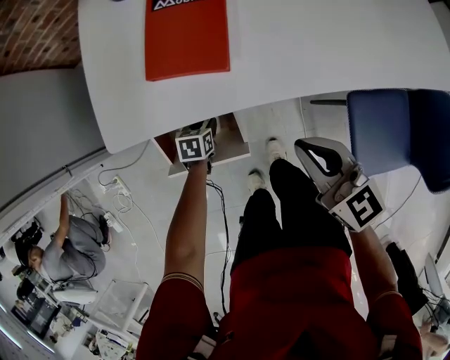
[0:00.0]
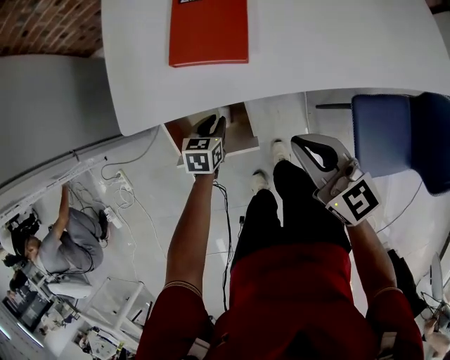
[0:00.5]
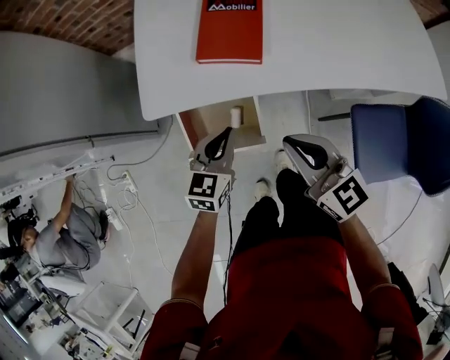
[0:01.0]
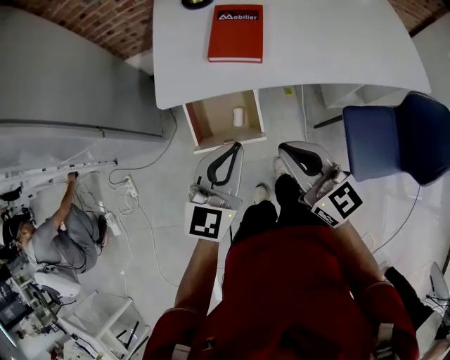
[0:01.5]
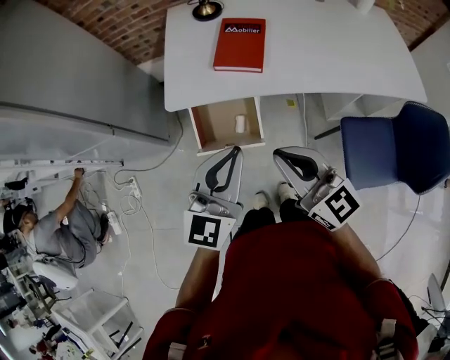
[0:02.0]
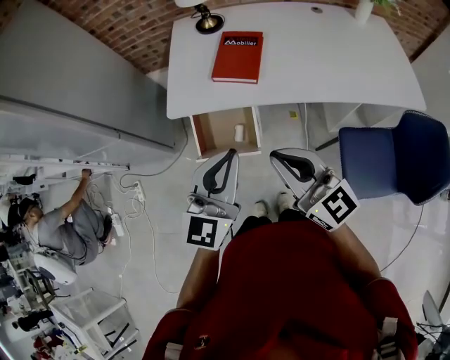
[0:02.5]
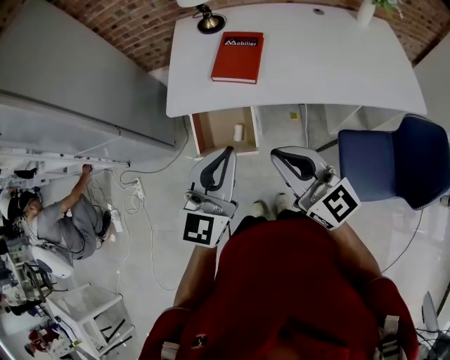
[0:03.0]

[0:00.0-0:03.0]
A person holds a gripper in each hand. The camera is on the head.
0:00.0 to 0:01.5: The right gripper heads upward, backward and to the left, covering some 20 cm, while the left gripper moves upward and backward, some 50 cm, points its fingers approximately 50 degrees further upward, and closes its fingers.
0:01.5 to 0:03.0: Both grippers travel together upward and to the right, roughly 10 cm.

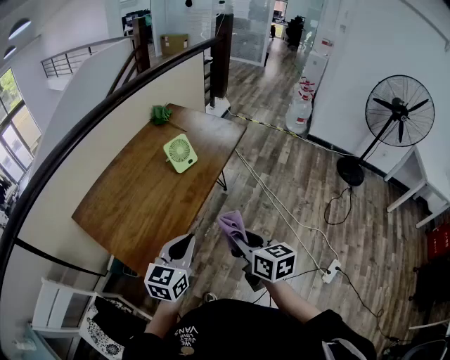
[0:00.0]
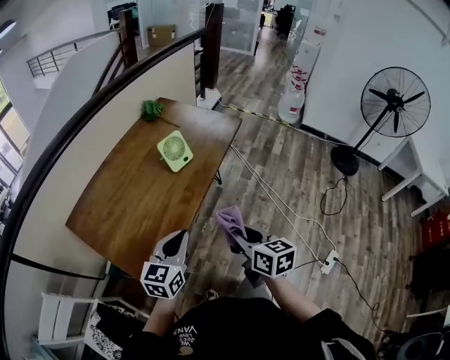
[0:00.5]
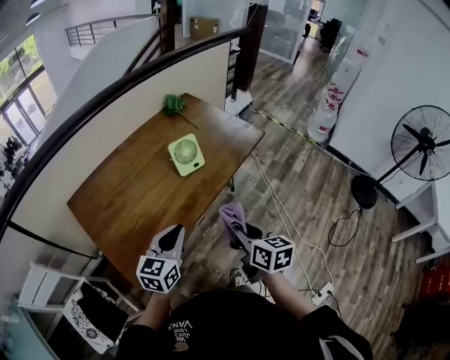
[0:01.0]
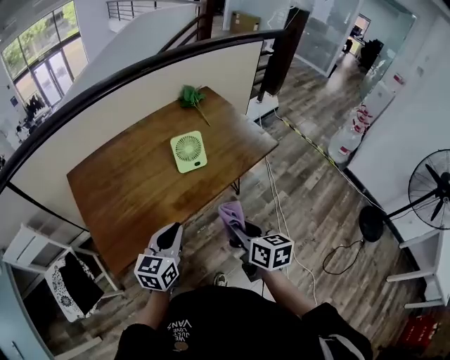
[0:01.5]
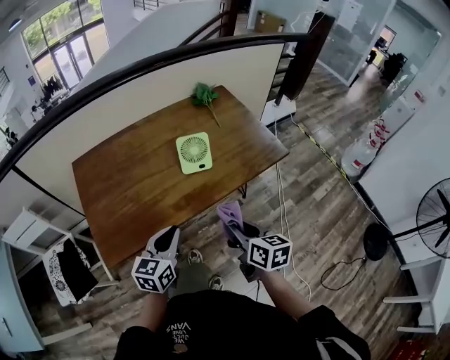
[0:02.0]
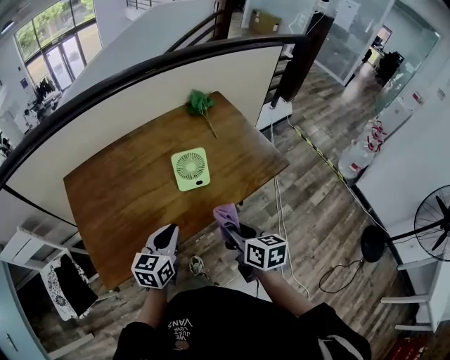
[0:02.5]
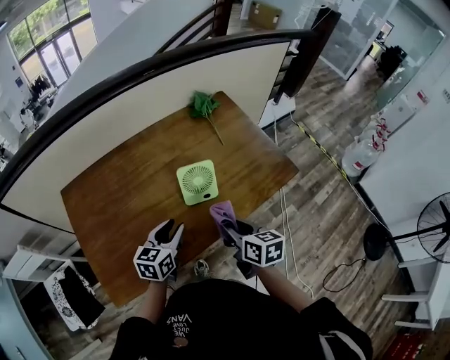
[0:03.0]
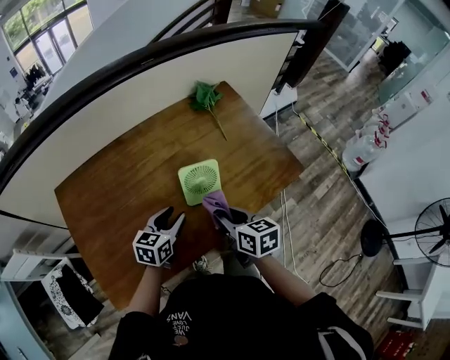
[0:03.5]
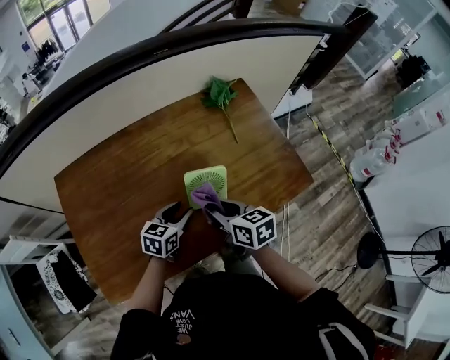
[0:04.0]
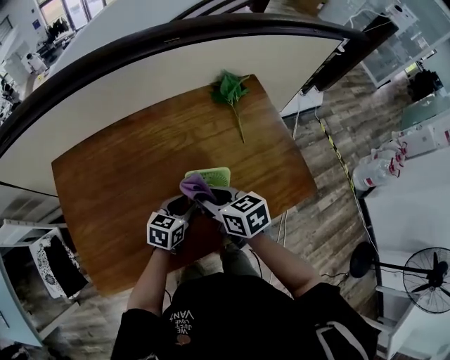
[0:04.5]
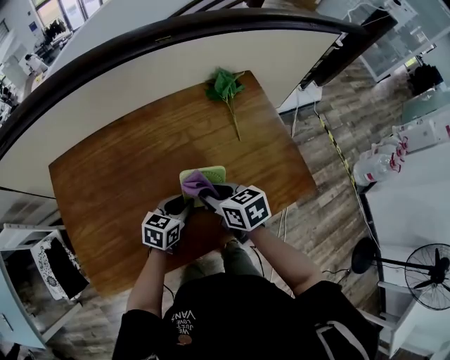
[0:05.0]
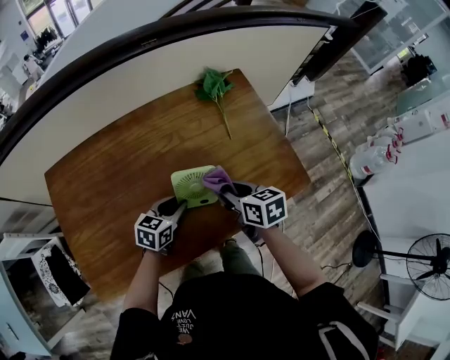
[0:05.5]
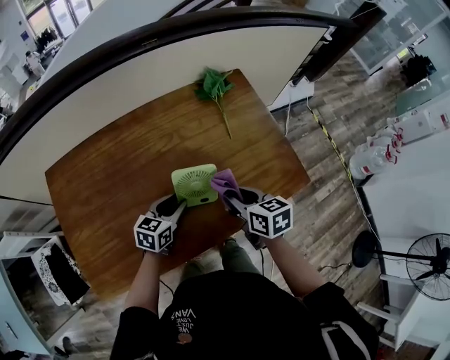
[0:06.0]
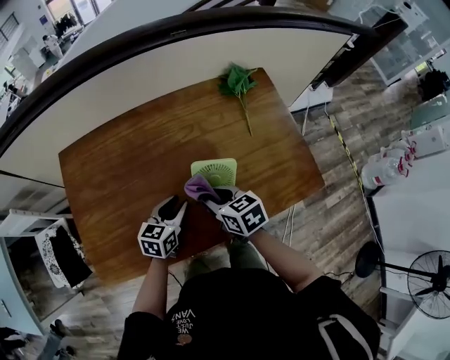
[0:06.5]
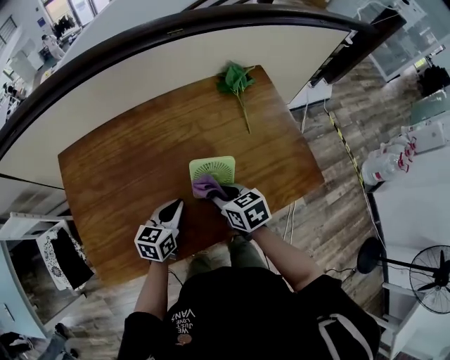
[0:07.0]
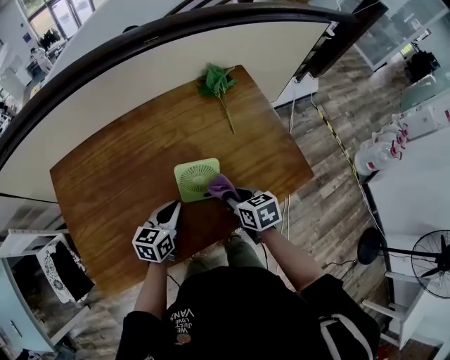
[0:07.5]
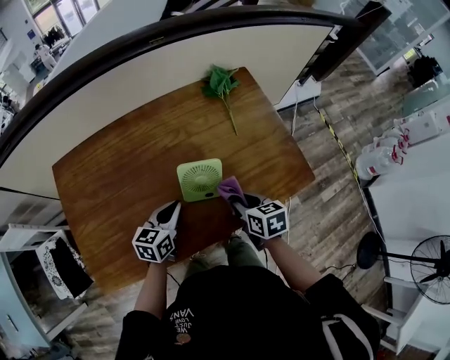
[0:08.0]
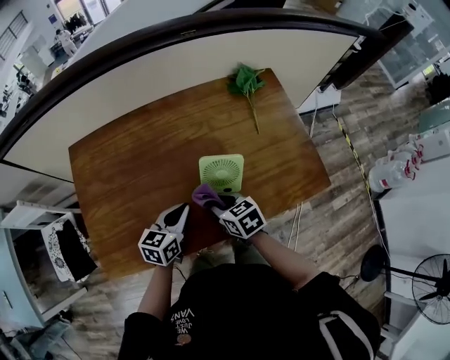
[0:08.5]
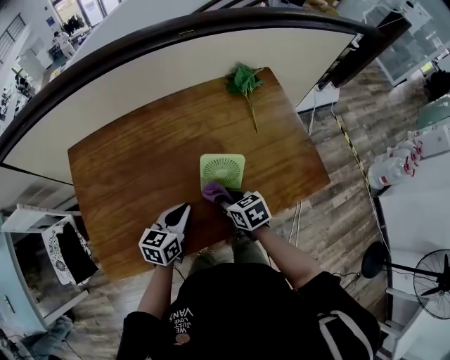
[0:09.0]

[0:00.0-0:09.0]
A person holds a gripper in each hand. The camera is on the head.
0:00.0 to 0:02.0: The right gripper moves roughly 25 cm, and changes its angle by approximately 30 degrees. Meanwhile the left gripper changes place by some 15 cm, and rotates some 40 degrees.
0:02.0 to 0:04.5: The right gripper goes some 30 cm forward, and turns by roughly 30 degrees; the left gripper heads forward and downward, covering some 30 cm, and opens up.
0:04.5 to 0:07.0: The right gripper goes approximately 5 cm downward, and moves some 10 cm to the right and comes back, while the left gripper shifts roughly 5 cm to the left, and closes its fingers.
0:07.0 to 0:09.0: The right gripper reaches some 10 cm to the right, then returns.

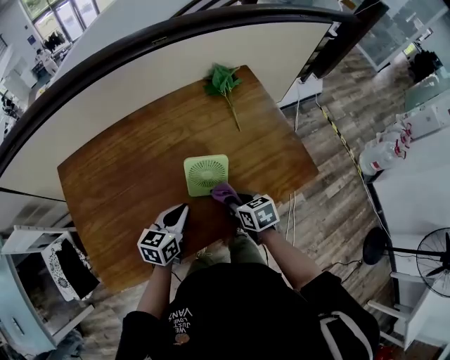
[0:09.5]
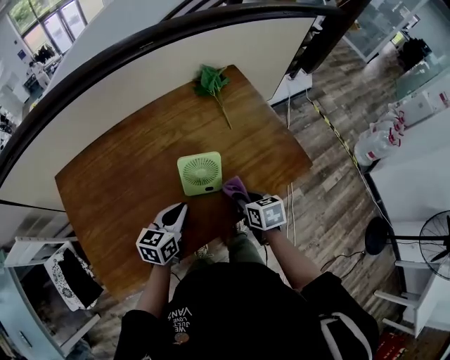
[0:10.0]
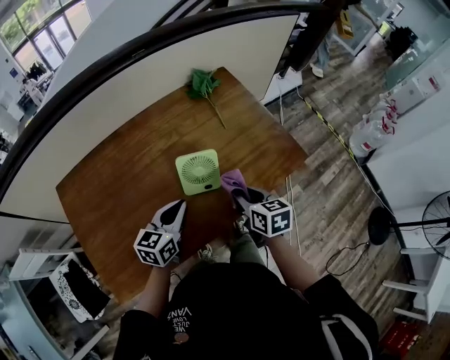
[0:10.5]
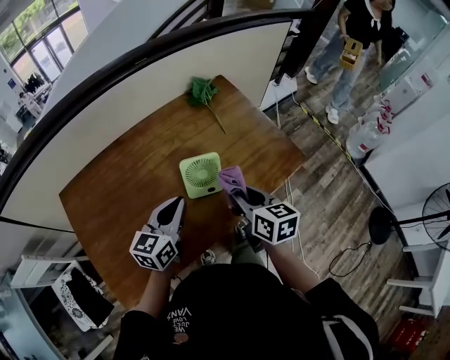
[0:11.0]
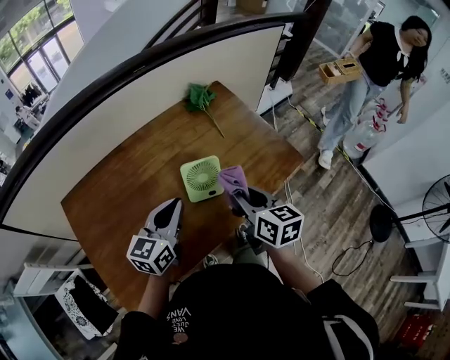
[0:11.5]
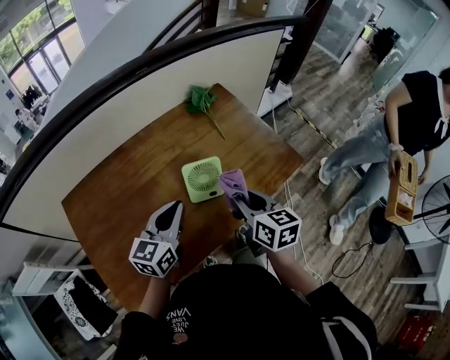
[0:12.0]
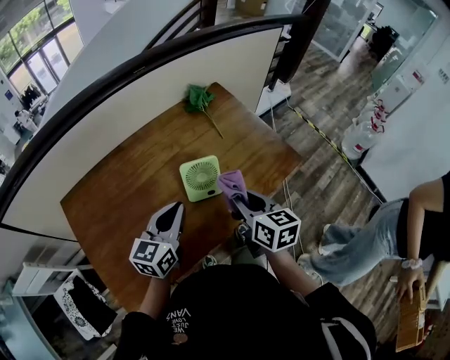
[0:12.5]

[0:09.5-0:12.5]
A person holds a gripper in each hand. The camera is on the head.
0:09.5 to 0:11.0: Both grippers travel together upward, approximately 15 cm. The right gripper turns by some 30 degrees.
0:11.0 to 0:12.5: There are only small adjustments of the grippers.

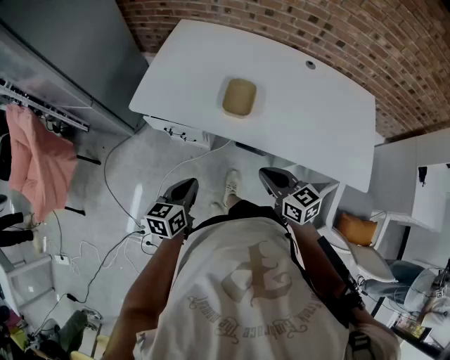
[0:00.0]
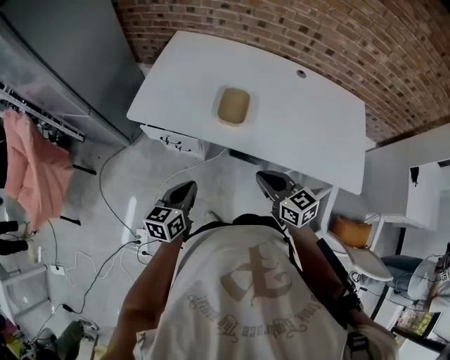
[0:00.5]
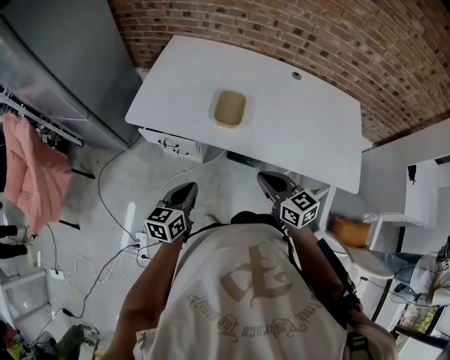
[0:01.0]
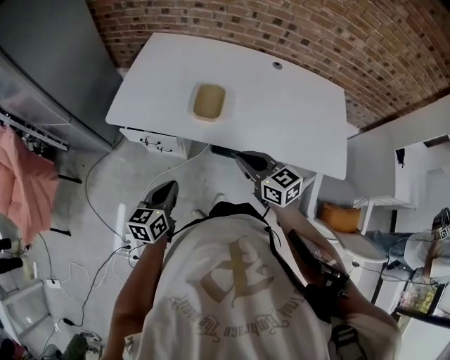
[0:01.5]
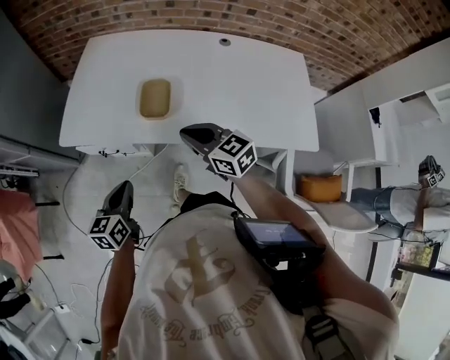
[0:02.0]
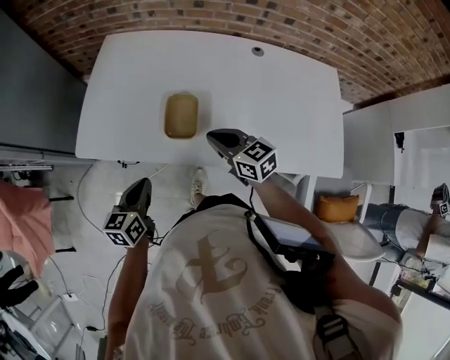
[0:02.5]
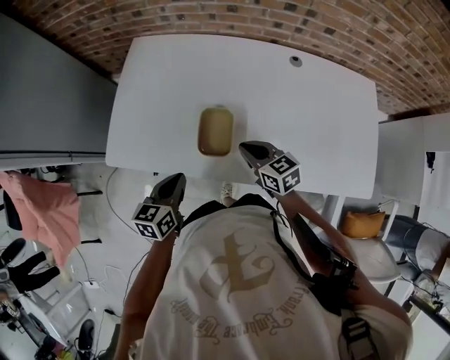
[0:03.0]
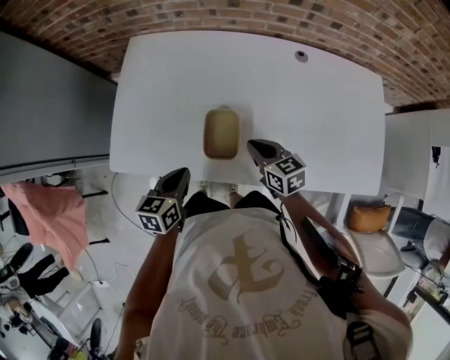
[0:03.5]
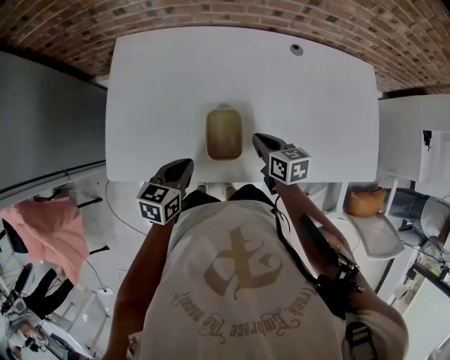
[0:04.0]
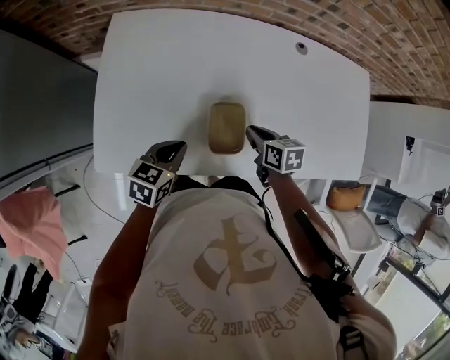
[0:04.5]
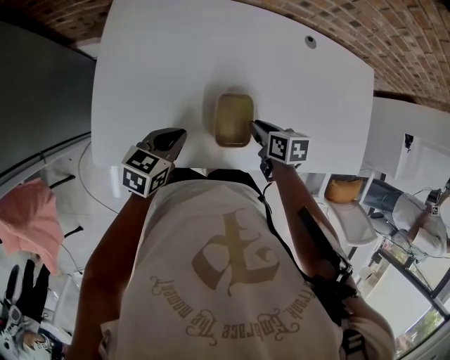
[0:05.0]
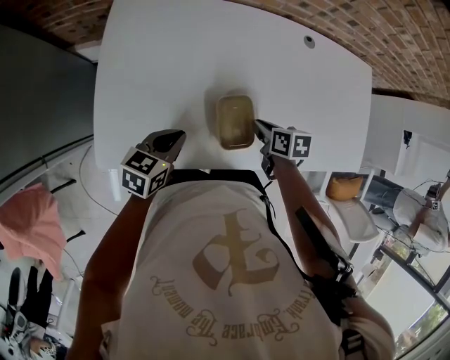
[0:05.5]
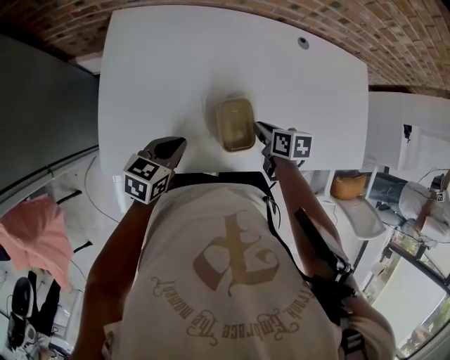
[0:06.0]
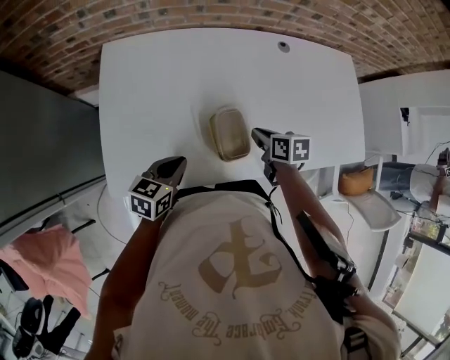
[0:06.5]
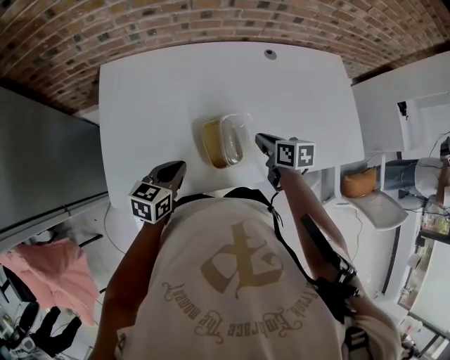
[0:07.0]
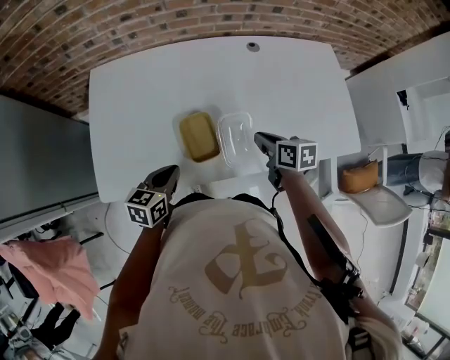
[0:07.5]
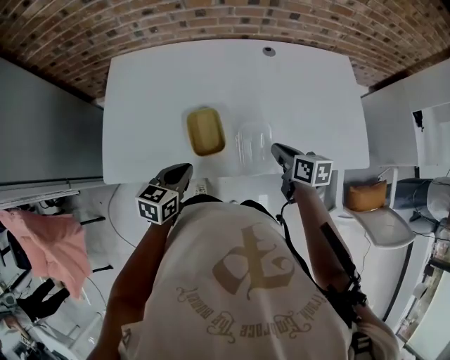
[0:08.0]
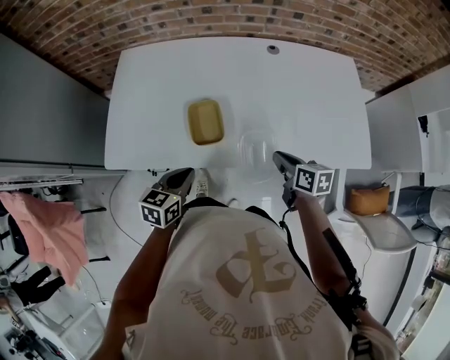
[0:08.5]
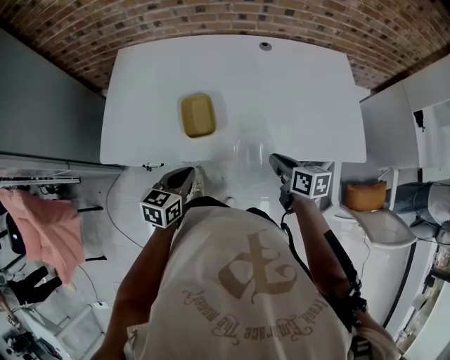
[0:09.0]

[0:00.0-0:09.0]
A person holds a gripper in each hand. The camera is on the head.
0:00.0 to 0:02.0: The right gripper moves forward, about 10 cm.
0:02.0 to 0:04.5: The left gripper is displaced forward by roughly 30 cm, and rotates approximately 30 degrees, while the right gripper moves forward and downward, about 25 cm, and changes its angle by roughly 50 degrees.
0:04.5 to 0:07.0: The right gripper moves about 5 cm.
0:07.0 to 0:09.0: Both grippers travel together backward and to the right, approximately 20 cm.

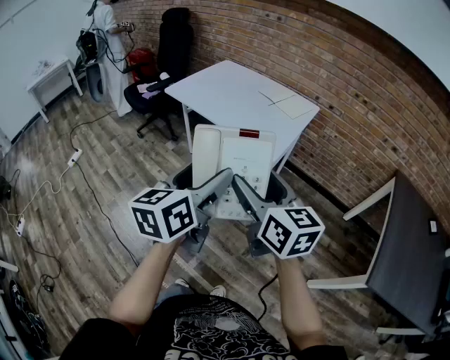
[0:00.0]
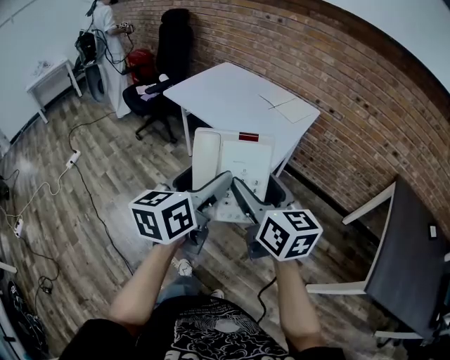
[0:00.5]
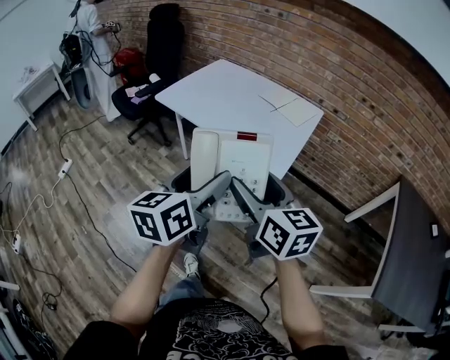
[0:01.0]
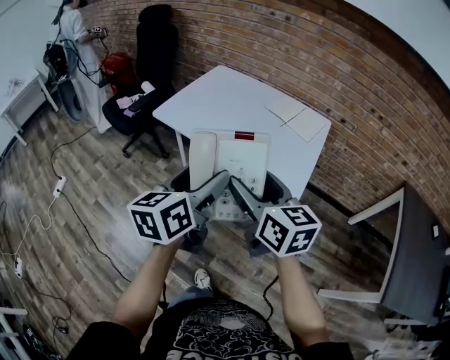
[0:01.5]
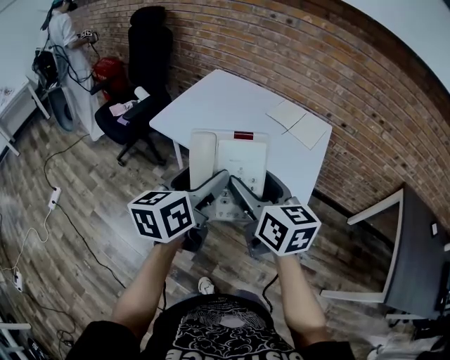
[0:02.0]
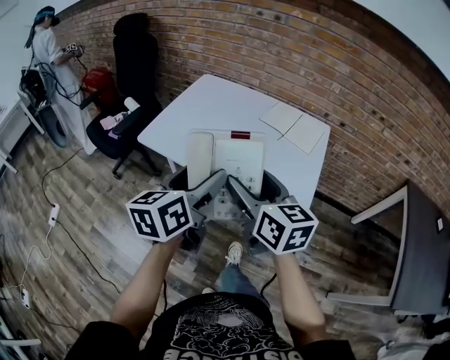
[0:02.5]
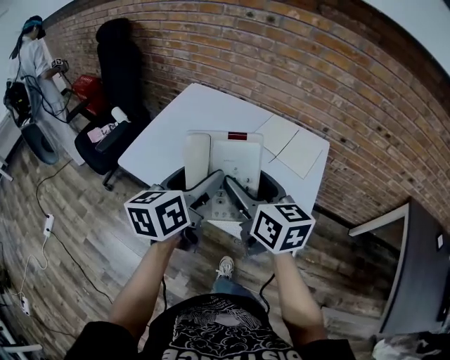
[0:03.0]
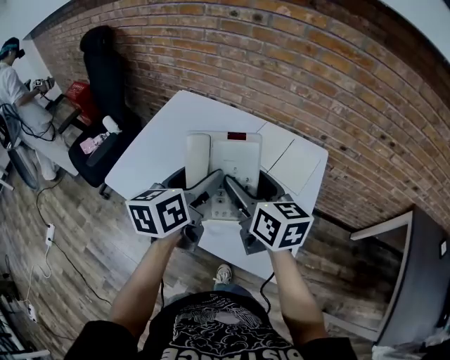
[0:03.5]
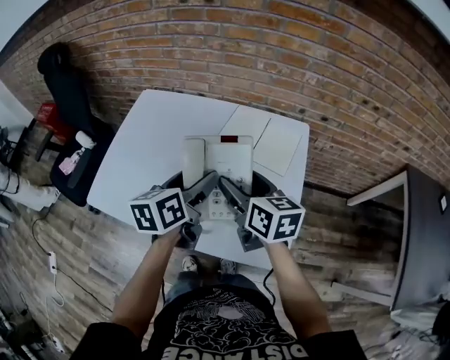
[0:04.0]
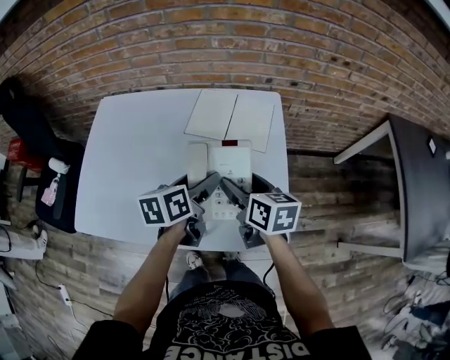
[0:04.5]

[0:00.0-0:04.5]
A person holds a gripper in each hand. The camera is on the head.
0:00.0 to 0:02.0: The grippers both shift forward and to the left by some 35 cm.
0:02.0 to 0:04.5: The left gripper ends up roughly 40 cm from where it was, and turns by some 40 degrees; the right gripper moves about 40 cm, and changes its angle by approximately 40 degrees.
